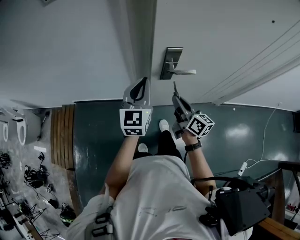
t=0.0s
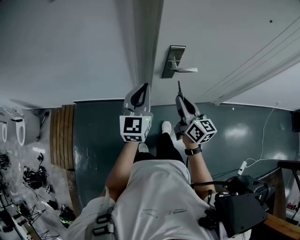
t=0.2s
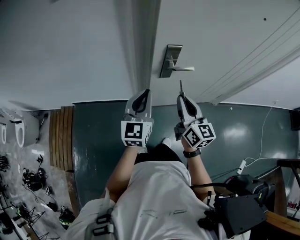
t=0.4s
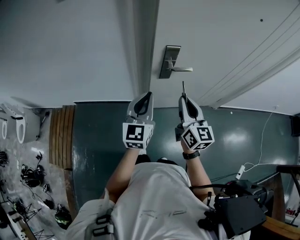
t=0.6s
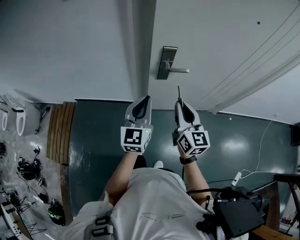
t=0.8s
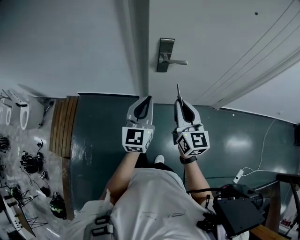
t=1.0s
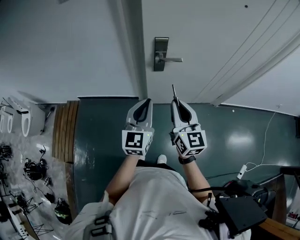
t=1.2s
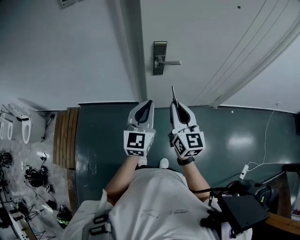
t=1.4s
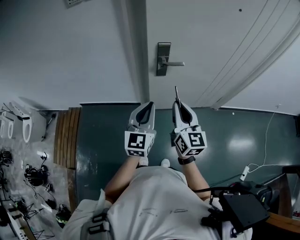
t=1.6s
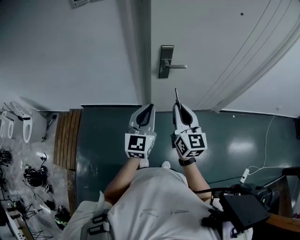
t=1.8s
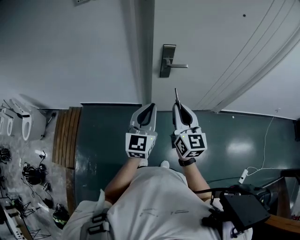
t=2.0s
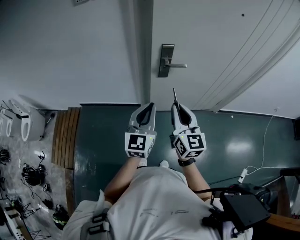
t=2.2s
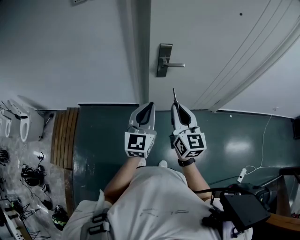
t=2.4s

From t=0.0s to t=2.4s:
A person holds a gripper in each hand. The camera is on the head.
From t=0.0s to t=1.2s: The left gripper moves backward, about 20 cm, while the right gripper moves backward and upward, about 20 cm, and rotates approximately 40 degrees.
From t=1.2s to t=2.4s: The grippers move only a little.

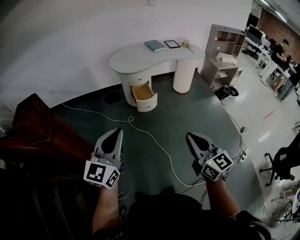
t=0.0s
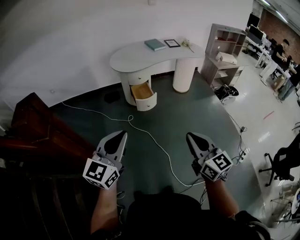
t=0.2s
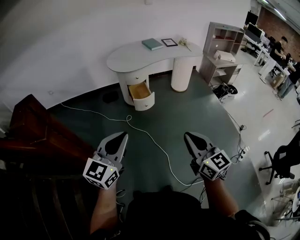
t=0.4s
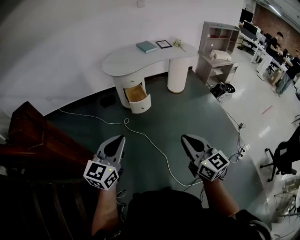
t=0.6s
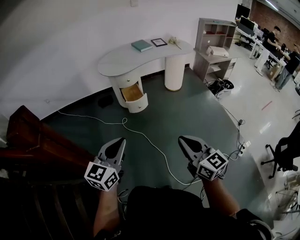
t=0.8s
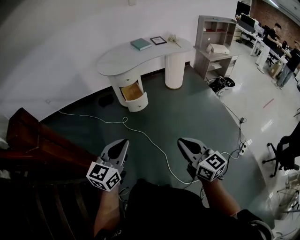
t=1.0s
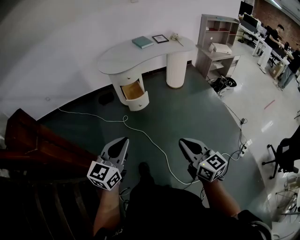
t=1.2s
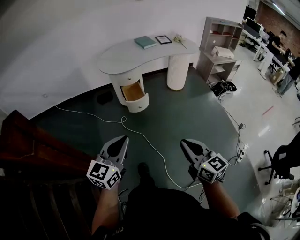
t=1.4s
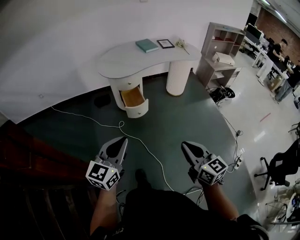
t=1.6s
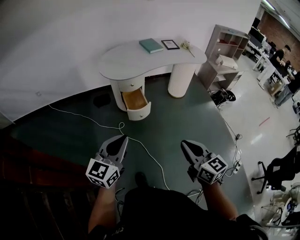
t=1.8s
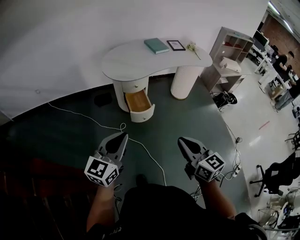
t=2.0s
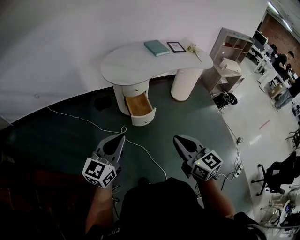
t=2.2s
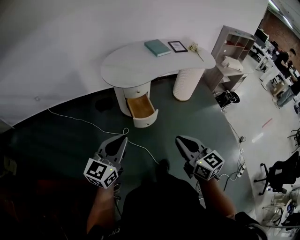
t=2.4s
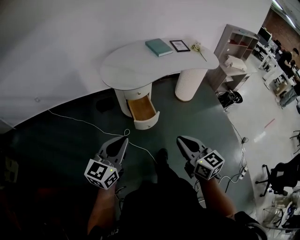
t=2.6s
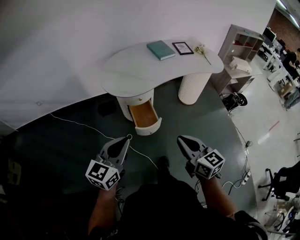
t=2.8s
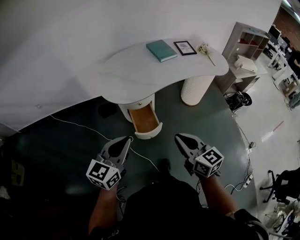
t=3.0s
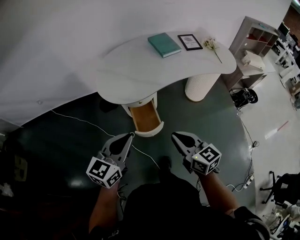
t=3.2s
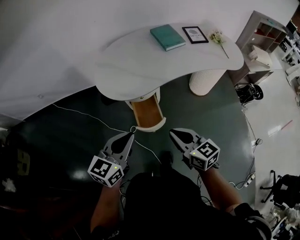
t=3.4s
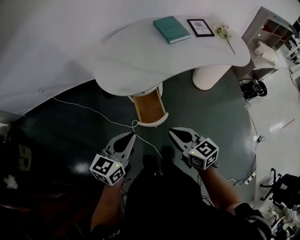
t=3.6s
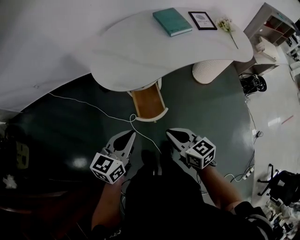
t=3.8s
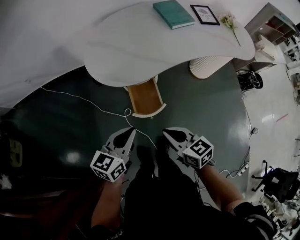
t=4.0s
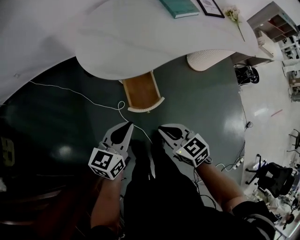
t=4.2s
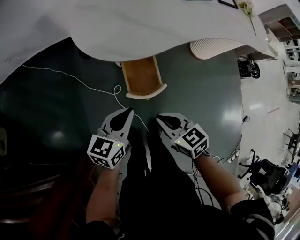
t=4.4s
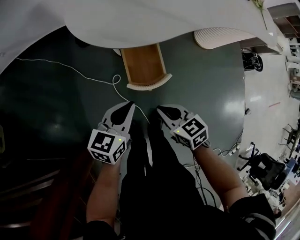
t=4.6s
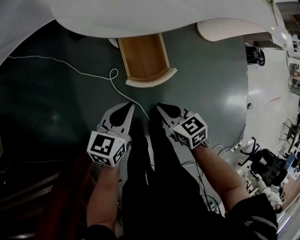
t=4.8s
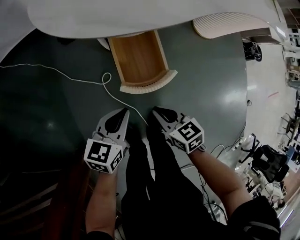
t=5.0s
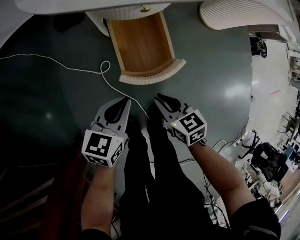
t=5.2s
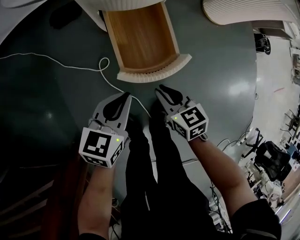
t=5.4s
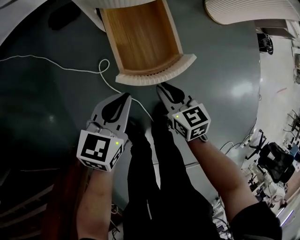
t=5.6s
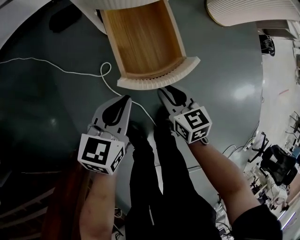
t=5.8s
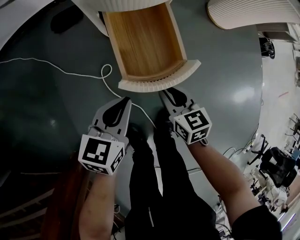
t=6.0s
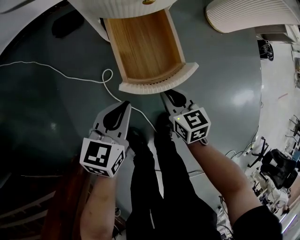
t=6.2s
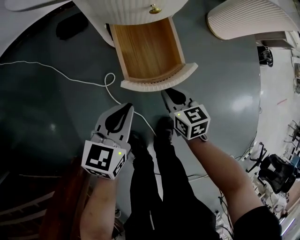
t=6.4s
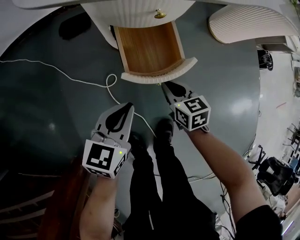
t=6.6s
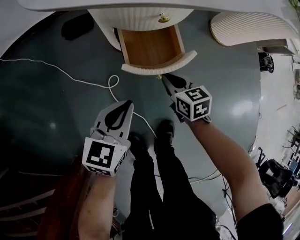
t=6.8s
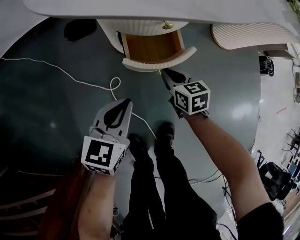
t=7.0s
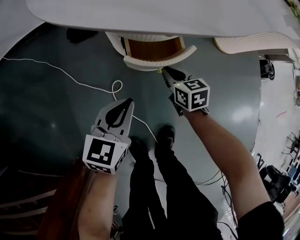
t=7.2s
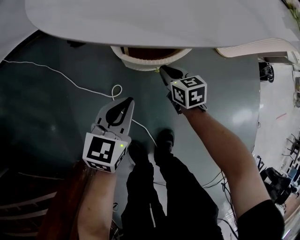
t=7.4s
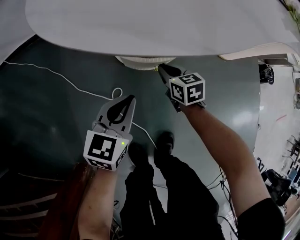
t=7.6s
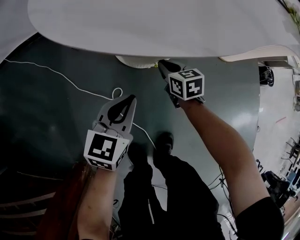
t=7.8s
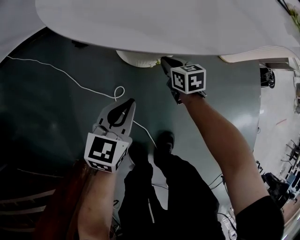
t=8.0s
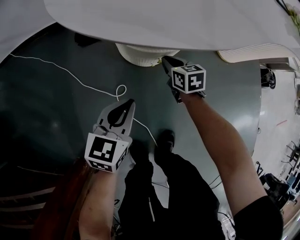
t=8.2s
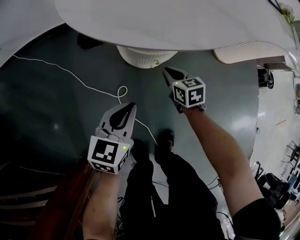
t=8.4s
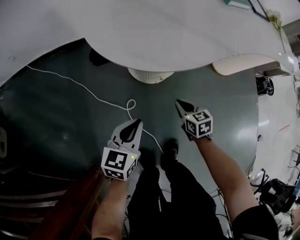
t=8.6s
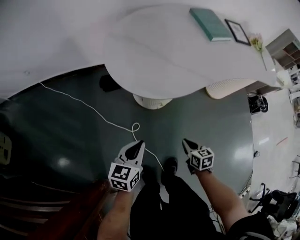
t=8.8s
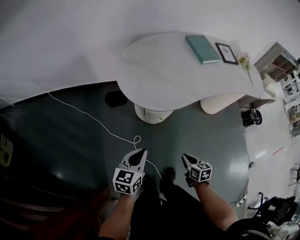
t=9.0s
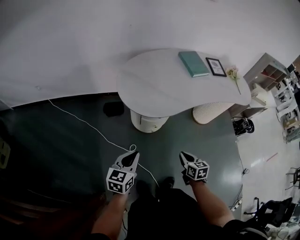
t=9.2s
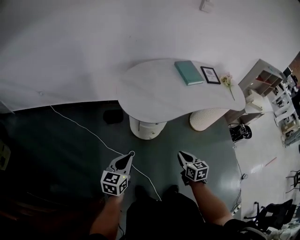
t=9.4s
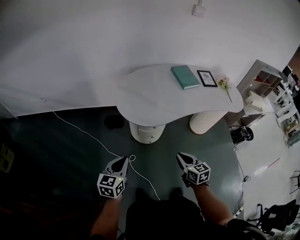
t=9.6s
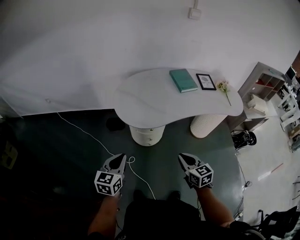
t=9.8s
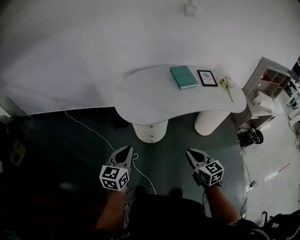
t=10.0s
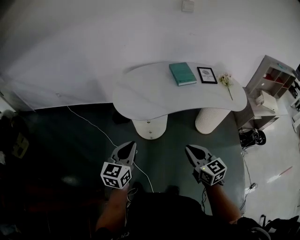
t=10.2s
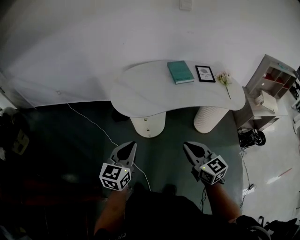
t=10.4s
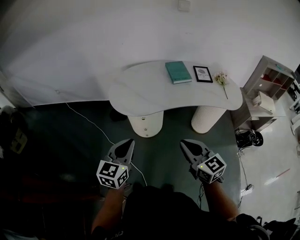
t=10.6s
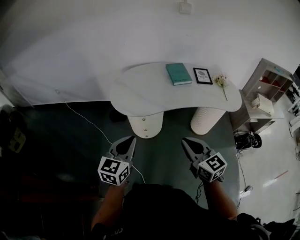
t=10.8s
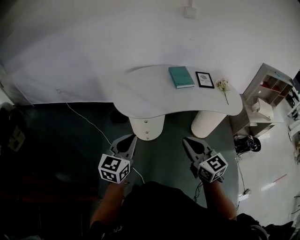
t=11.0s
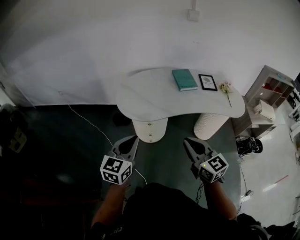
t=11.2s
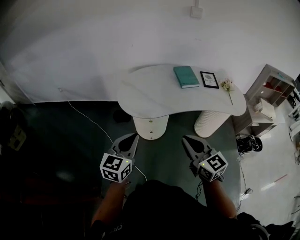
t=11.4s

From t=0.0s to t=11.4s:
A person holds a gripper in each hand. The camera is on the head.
From t=0.0s to t=1.4s: The left gripper moves to the right, downward and forward, about 15 cm; the right gripper goes approximately 10 cm to the right, forward and downward.
From t=1.4s to t=2.8s: Both grippers move forward, about 40 cm.
From t=2.8s to t=4.2s: The right gripper goes roughly 30 cm downward and forward, and turns by approximately 30 degrees. The left gripper goes roughly 30 cm forward and downward, and swivels some 20 degrees.
From t=4.2s to t=5.6s: The two grippers go roughly 40 cm downward.
From t=5.6s to t=7.2s: The left gripper shifts some 5 cm forward. The right gripper shifts about 15 cm forward.
From t=7.2s to t=8.6s: The left gripper shifts about 10 cm upward; the right gripper moves upward and backward, some 10 cm.
From t=8.6s to t=10.0s: Both grippers move upward, roughly 40 cm. The right gripper swivels some 30 degrees.
From t=10.0s to t=11.4s: The left gripper shifts some 5 cm upward. Meanwhile the right gripper goes about 10 cm upward.

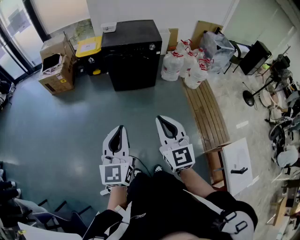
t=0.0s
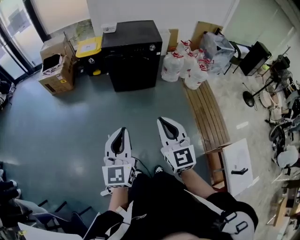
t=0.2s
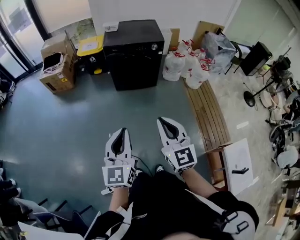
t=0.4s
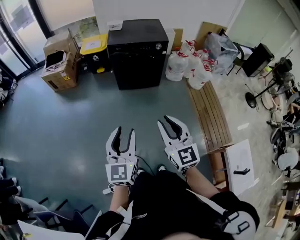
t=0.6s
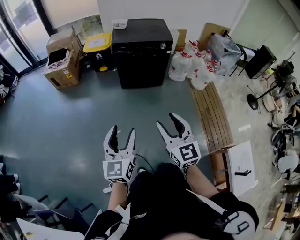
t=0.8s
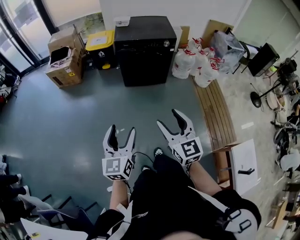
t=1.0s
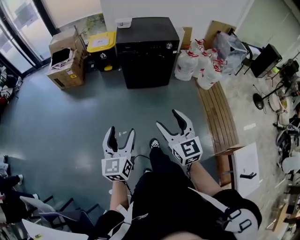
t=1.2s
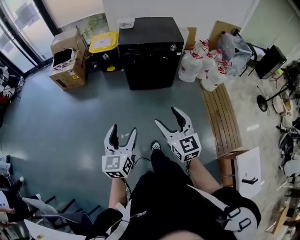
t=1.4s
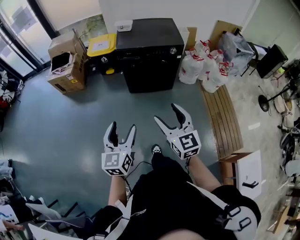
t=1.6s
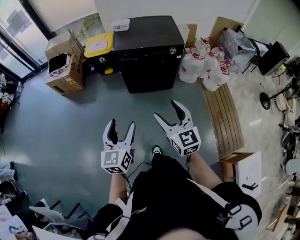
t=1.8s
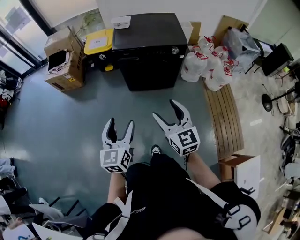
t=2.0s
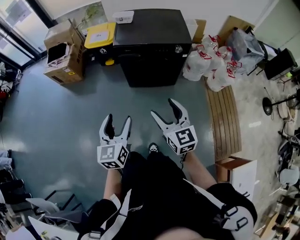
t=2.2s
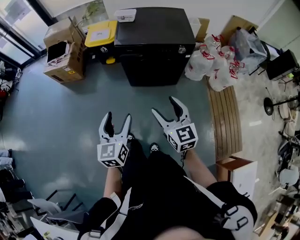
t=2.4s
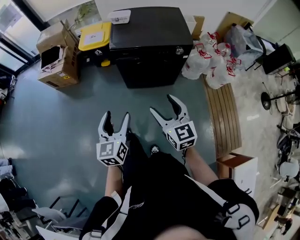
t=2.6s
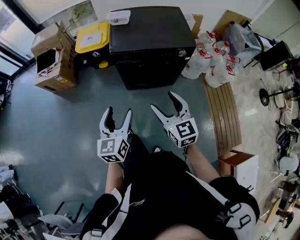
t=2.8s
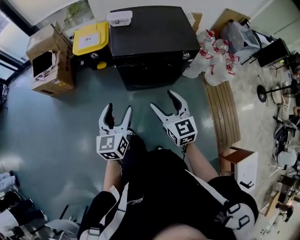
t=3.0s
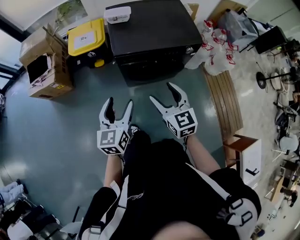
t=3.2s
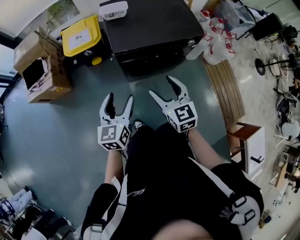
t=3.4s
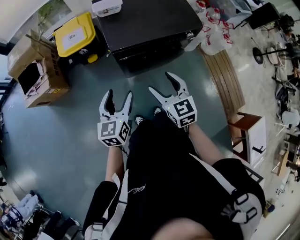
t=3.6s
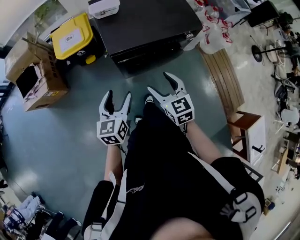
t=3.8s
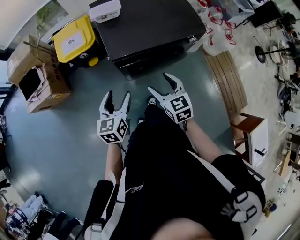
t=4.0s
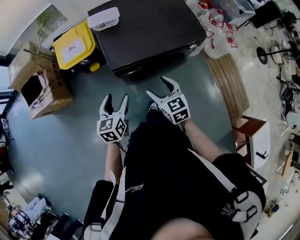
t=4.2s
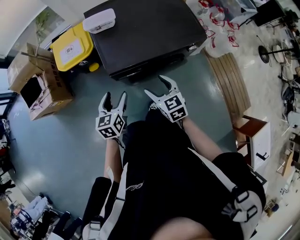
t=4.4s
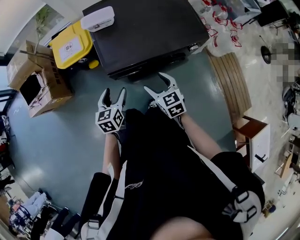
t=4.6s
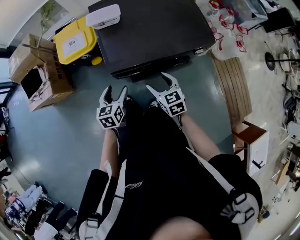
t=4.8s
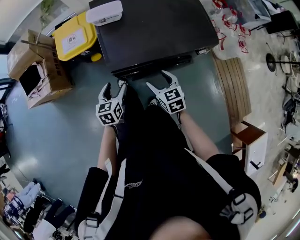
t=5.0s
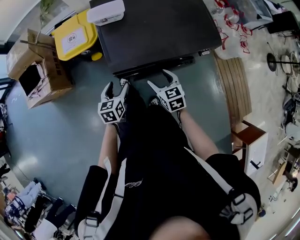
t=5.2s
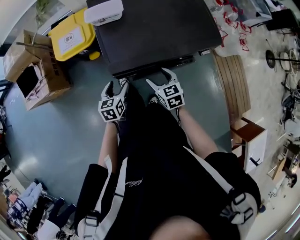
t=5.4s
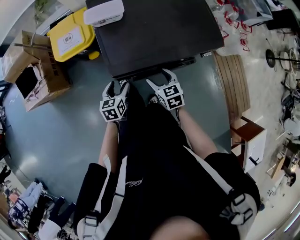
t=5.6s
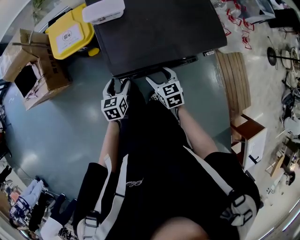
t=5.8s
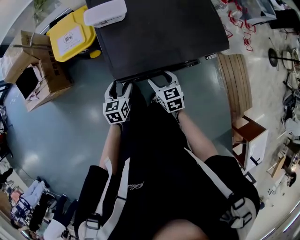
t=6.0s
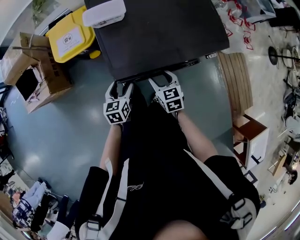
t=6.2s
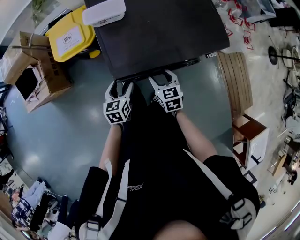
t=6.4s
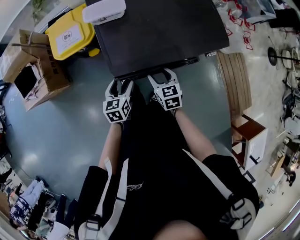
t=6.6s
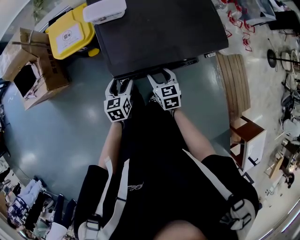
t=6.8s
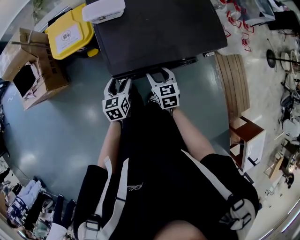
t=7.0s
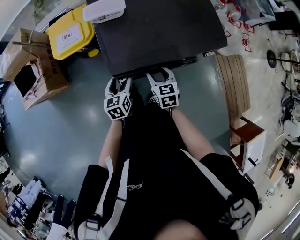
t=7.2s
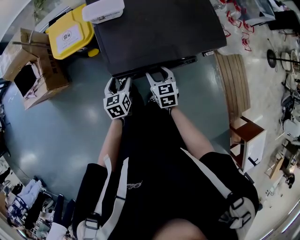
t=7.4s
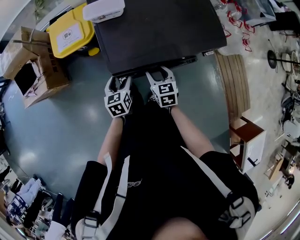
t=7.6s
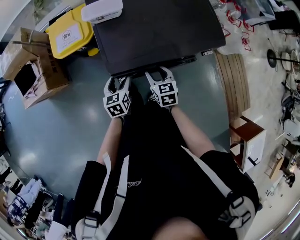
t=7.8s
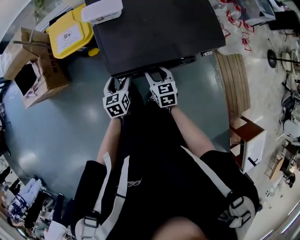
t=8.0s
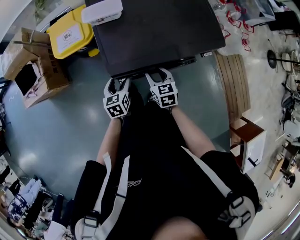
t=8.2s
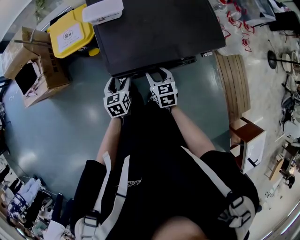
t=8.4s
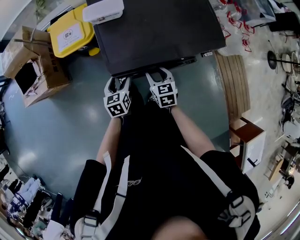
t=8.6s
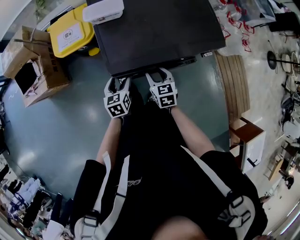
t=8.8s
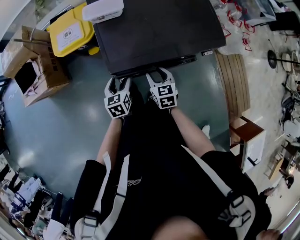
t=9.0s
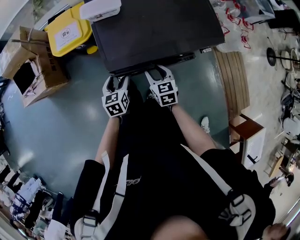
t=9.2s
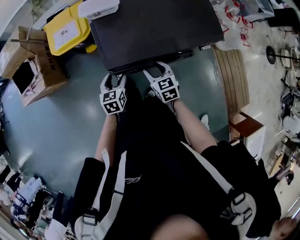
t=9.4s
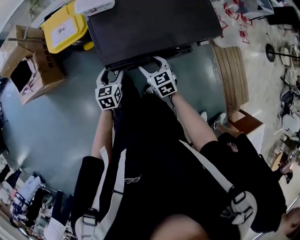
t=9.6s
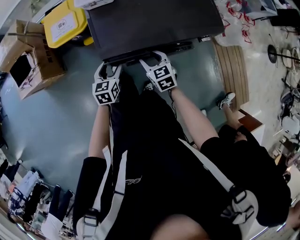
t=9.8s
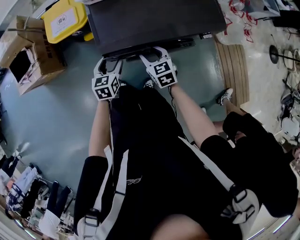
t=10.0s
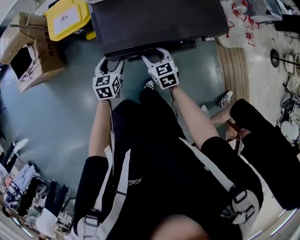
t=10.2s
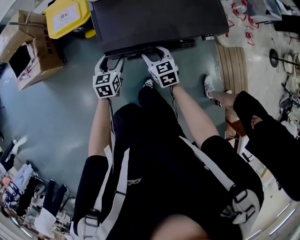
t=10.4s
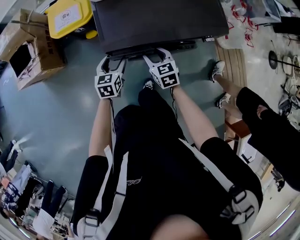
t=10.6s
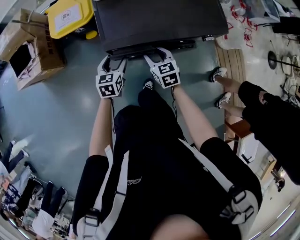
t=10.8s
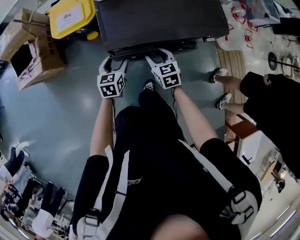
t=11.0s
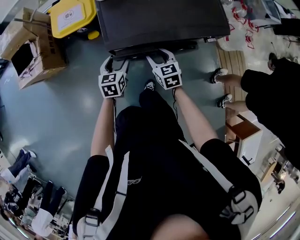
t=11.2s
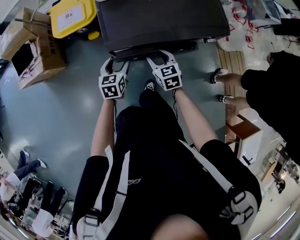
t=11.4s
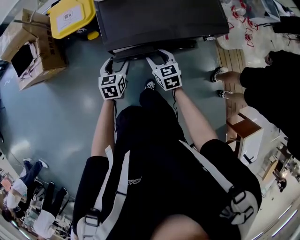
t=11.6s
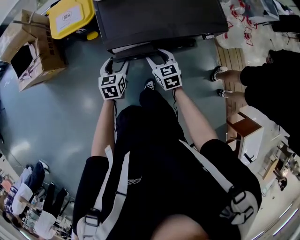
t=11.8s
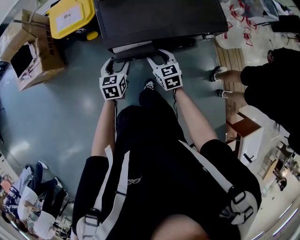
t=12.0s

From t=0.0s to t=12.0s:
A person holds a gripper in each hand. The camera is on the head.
From t=0.0s to t=1.6s: The grippers both shift forward by approximately 20 cm. The left gripper opens. The right gripper opens up.
From t=1.6s to t=3.0s: Both grippers move forward, about 35 cm.
From t=3.0s to t=4.4s: The grippers both shift forward and downward by roughly 25 cm. The left gripper changes its angle by some 20 degrees.
From t=4.4s to t=6.0s: Both grippers travel together downward and forward, about 15 cm.
From t=6.0s to t=7.6s: The grippers make only small movements.
From t=7.6s to t=9.0s: Both grippers stay about where they are.
From t=9.0s to t=12.0s: There are only small adjustments of the grippers.
